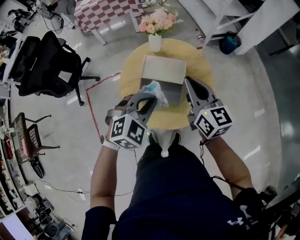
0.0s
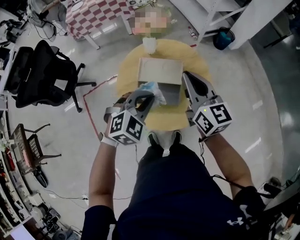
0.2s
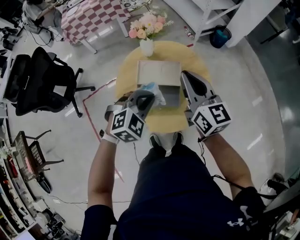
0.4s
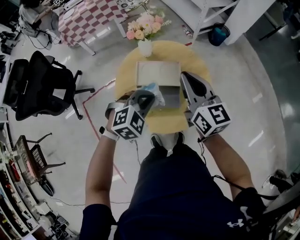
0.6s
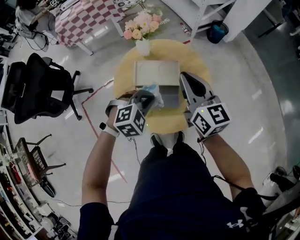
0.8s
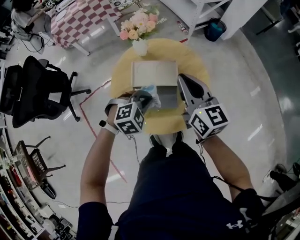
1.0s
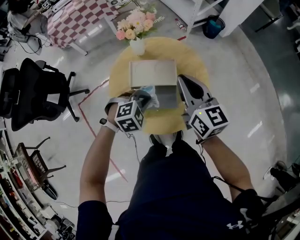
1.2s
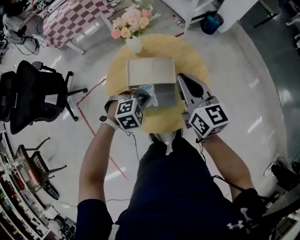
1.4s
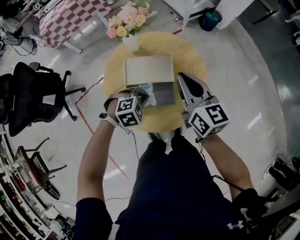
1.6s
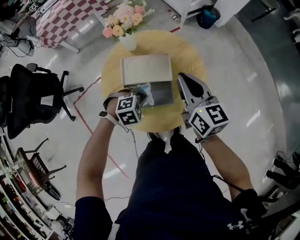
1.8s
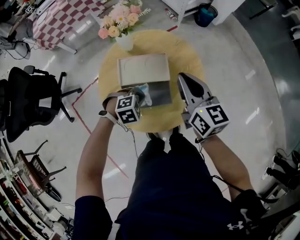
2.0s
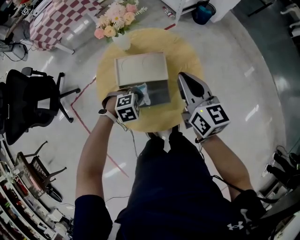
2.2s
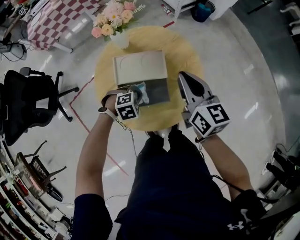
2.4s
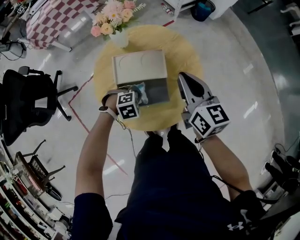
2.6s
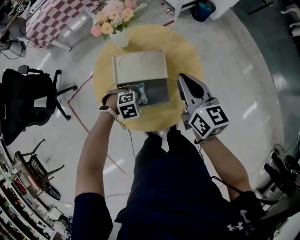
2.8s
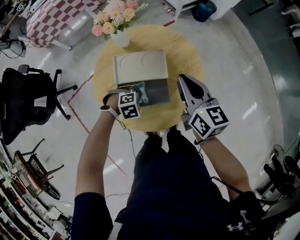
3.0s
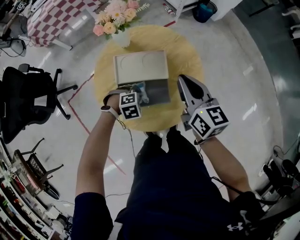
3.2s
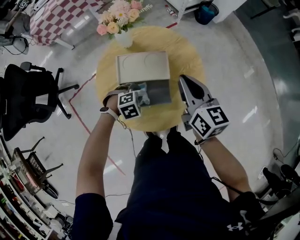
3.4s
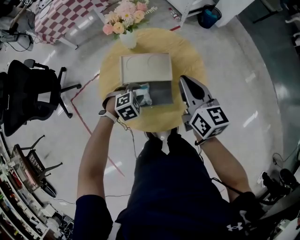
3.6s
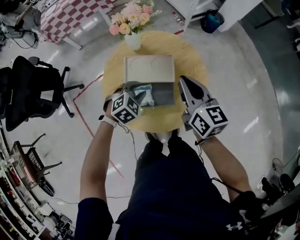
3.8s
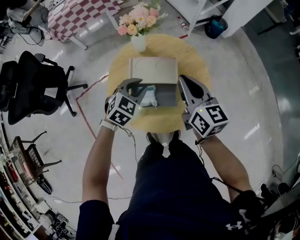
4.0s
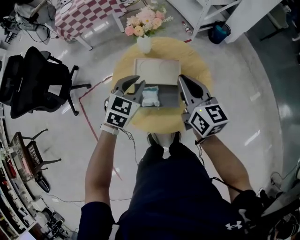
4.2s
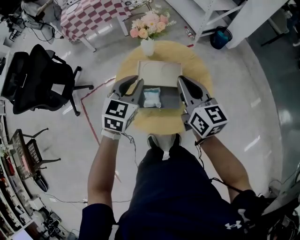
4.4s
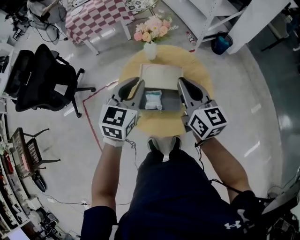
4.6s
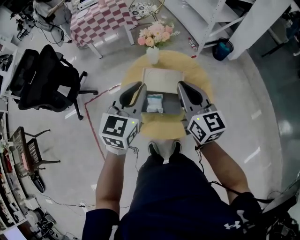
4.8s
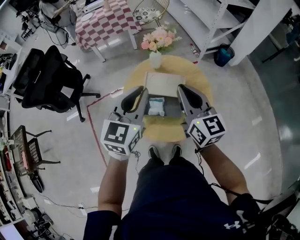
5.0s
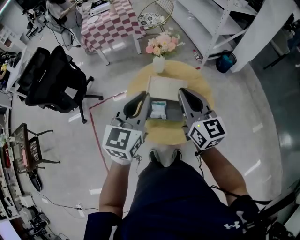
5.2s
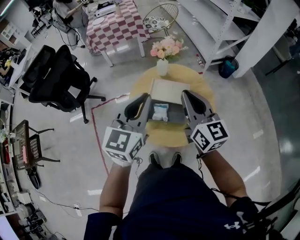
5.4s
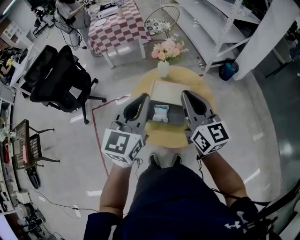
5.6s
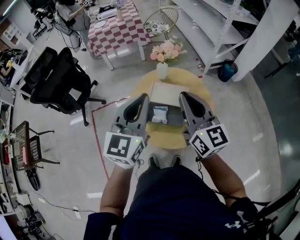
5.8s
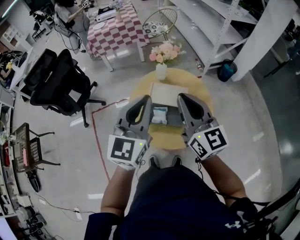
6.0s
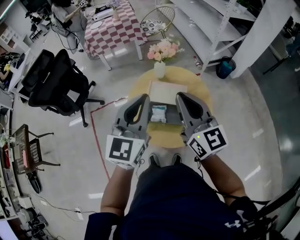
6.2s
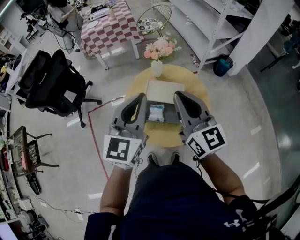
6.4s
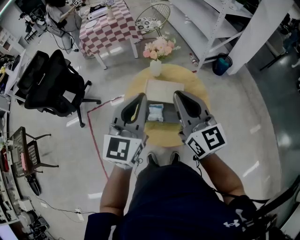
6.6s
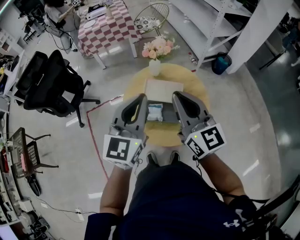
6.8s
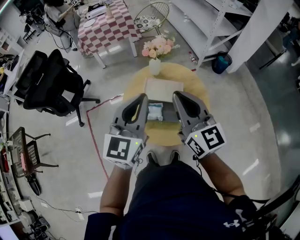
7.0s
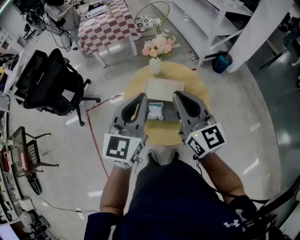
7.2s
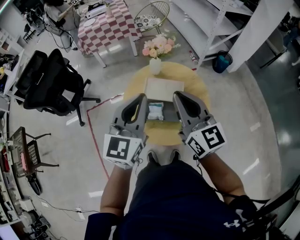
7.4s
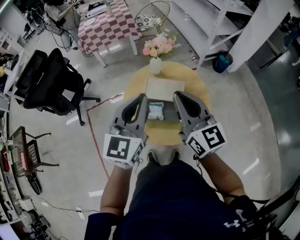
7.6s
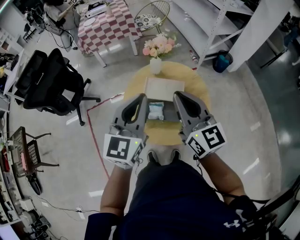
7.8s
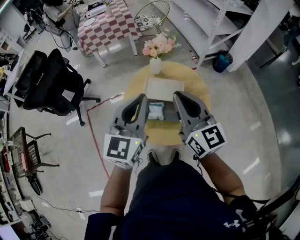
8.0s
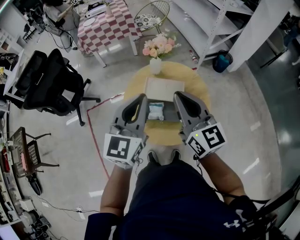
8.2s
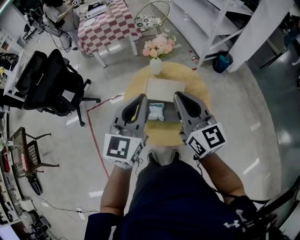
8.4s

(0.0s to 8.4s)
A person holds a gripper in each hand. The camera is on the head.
0.0s - 1.4s: The right gripper shifts by about 5 cm; the left gripper is displaced downward and forward by approximately 15 cm, and swivels about 30 degrees.
1.4s - 2.8s: The right gripper moves about 5 cm; the left gripper moves downward, roughly 10 cm.
2.8s - 4.2s: The left gripper heads upward, covering roughly 25 cm, and tips its fingers upward by about 40 degrees. The right gripper ends up roughly 10 cm from where it was.
4.2s - 5.6s: The right gripper heads upward and backward, covering roughly 15 cm. Meanwhile the left gripper goes roughly 25 cm upward and backward, and angles its fingers upward, by some 30 degrees.
5.6s - 7.0s: The grippers move only a little.
7.0s - 8.4s: The two grippers keep their place.

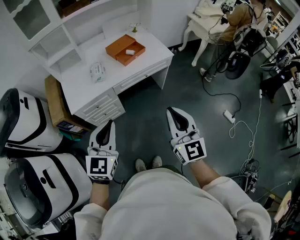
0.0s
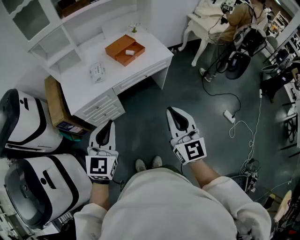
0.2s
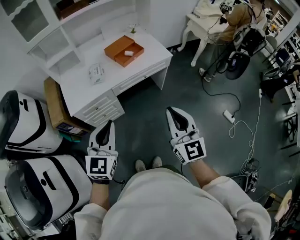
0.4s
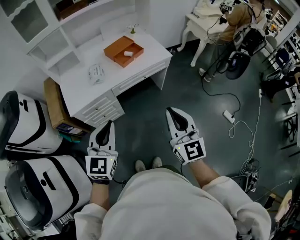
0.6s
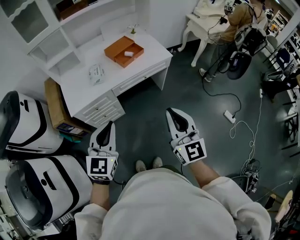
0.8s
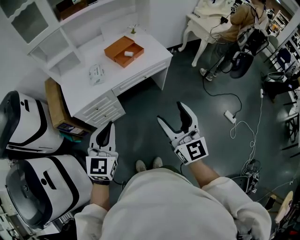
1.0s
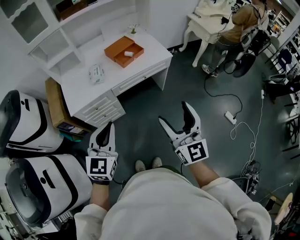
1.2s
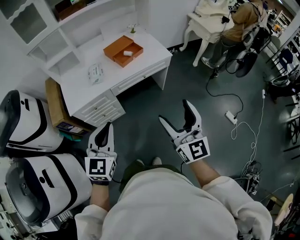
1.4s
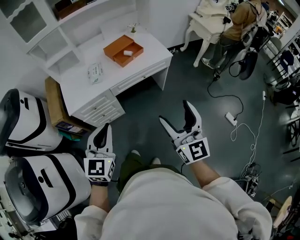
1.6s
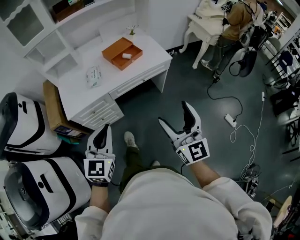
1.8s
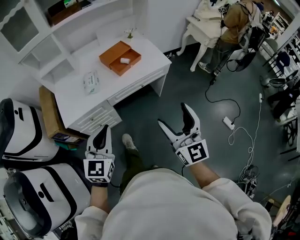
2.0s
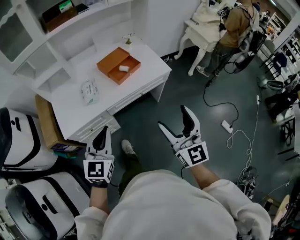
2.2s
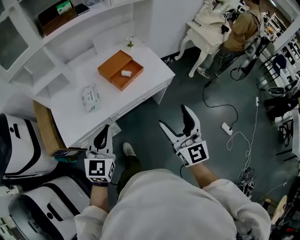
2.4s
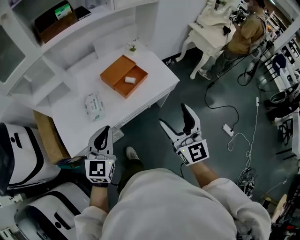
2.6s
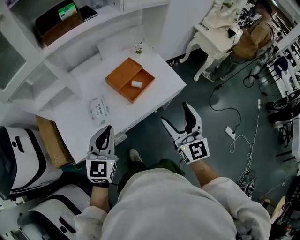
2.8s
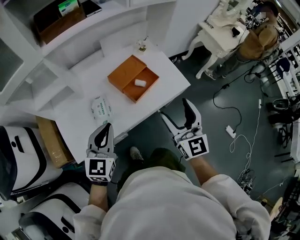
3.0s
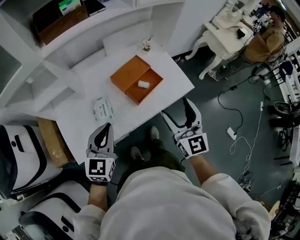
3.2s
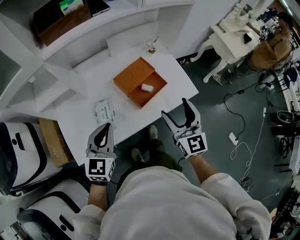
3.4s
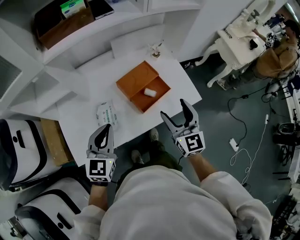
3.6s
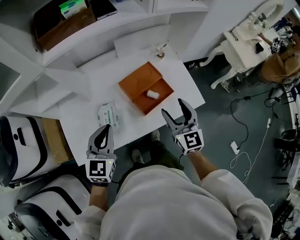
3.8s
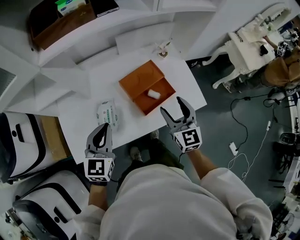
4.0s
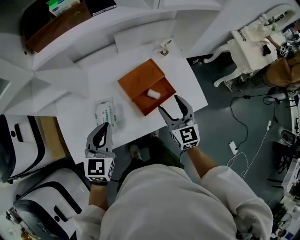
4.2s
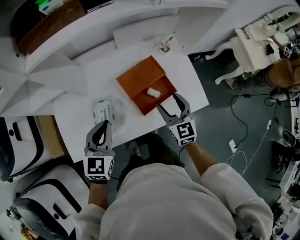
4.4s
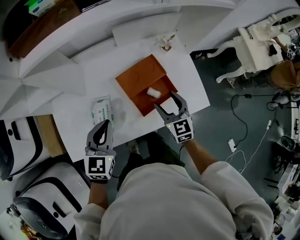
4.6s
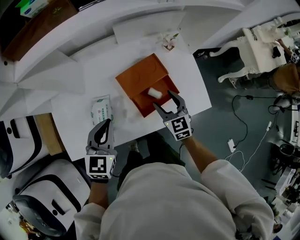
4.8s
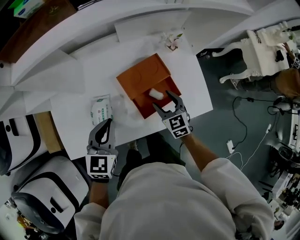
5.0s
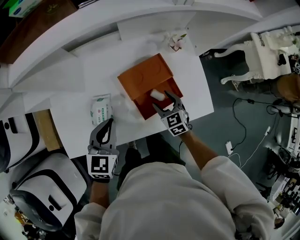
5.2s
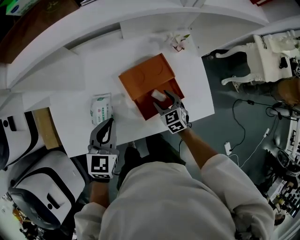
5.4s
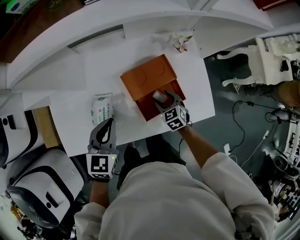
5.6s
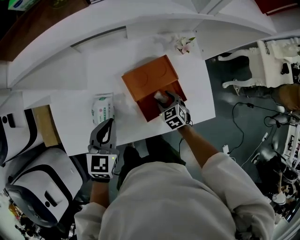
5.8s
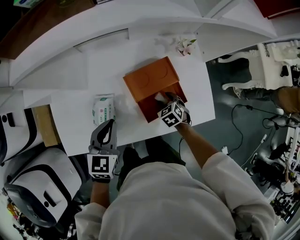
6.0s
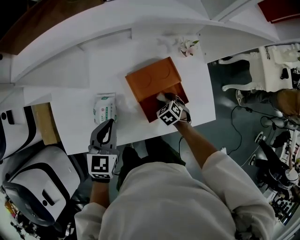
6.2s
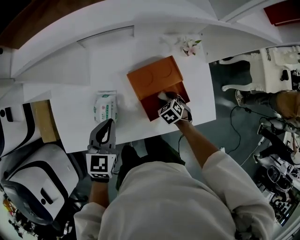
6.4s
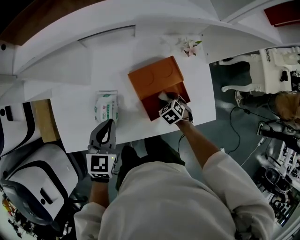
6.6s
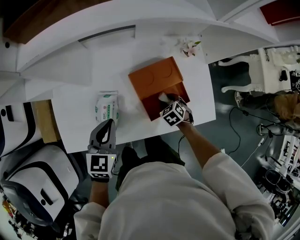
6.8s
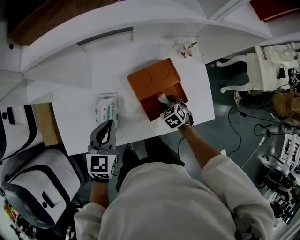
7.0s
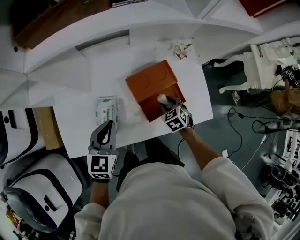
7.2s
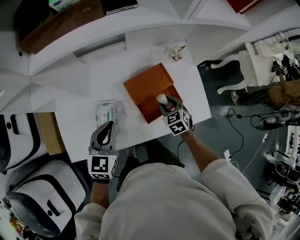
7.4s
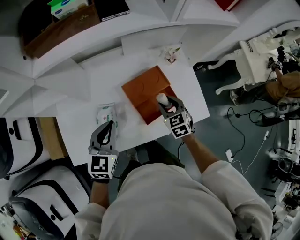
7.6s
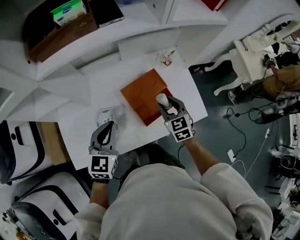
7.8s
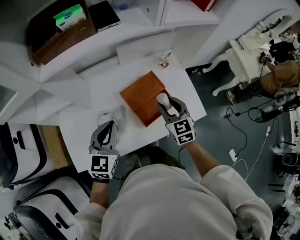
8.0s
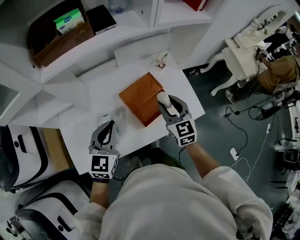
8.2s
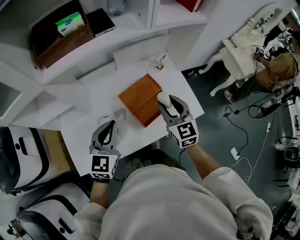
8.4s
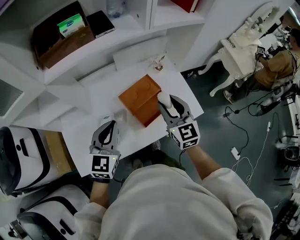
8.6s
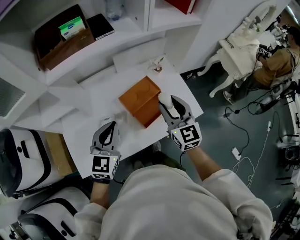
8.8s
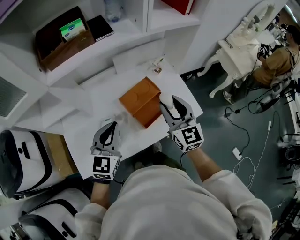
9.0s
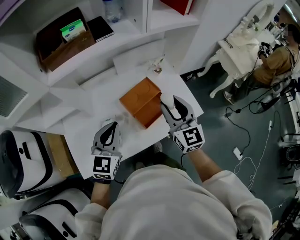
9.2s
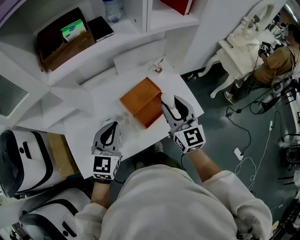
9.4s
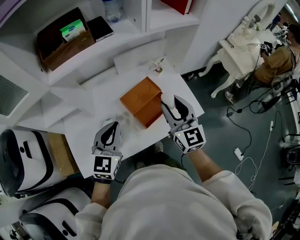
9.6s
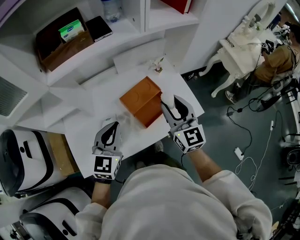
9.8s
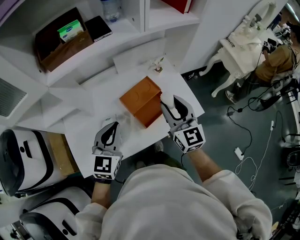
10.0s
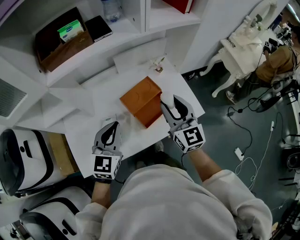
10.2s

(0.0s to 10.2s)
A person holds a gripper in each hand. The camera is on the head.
0.0s - 1.4s: The right gripper opens.
1.4s - 3.0s: Both grippers are carried forward, about 40 cm.
3.0s - 4.4s: The left gripper travels forward by roughly 15 cm. Meanwhile the right gripper heads forward and downward, covering roughly 30 cm, and swivels about 20 degrees.
4.4s - 5.8s: The left gripper shifts some 5 cm downward, while the right gripper travels downward by about 20 cm, and angles its fingers downward, by about 40 degrees.
5.8s - 7.2s: There are only small adjustments of the grippers.
7.2s - 8.8s: The right gripper is displaced upward by roughly 30 cm, and tips its fingers upward by some 50 degrees. Meanwhile the left gripper goes approximately 10 cm upward, and rotates about 20 degrees.
8.8s - 10.2s: There are only small adjustments of the grippers.

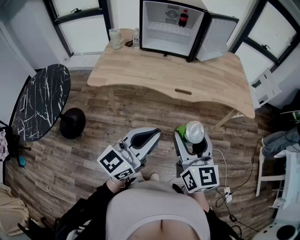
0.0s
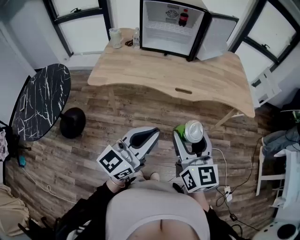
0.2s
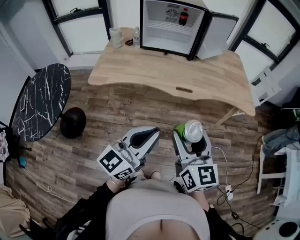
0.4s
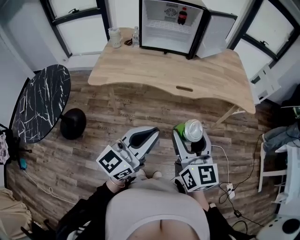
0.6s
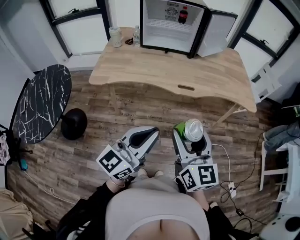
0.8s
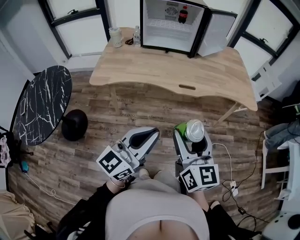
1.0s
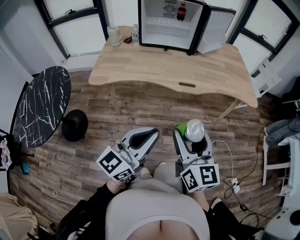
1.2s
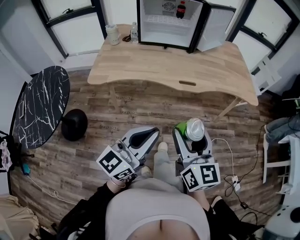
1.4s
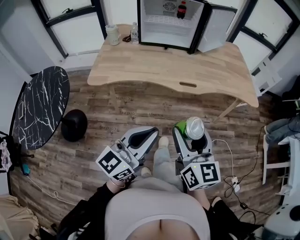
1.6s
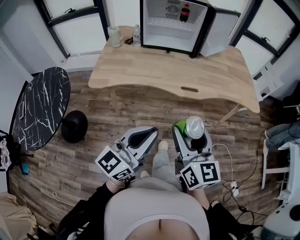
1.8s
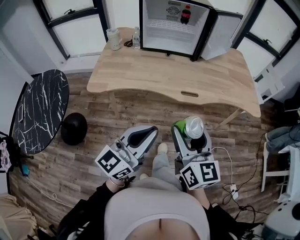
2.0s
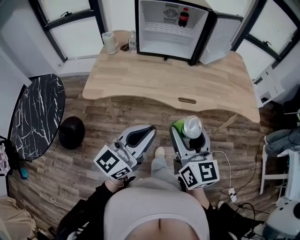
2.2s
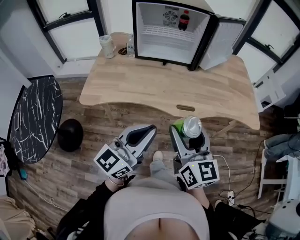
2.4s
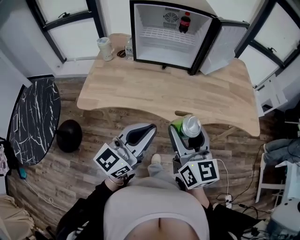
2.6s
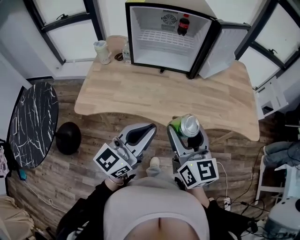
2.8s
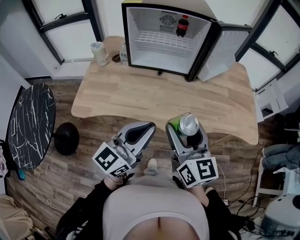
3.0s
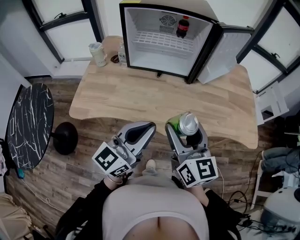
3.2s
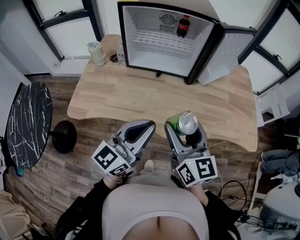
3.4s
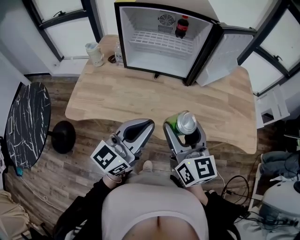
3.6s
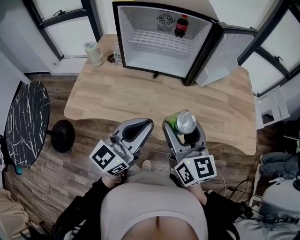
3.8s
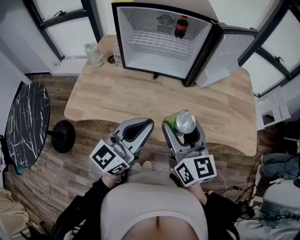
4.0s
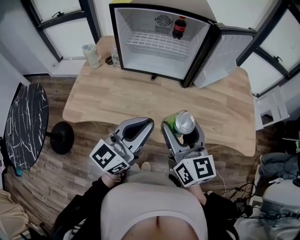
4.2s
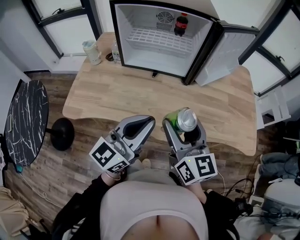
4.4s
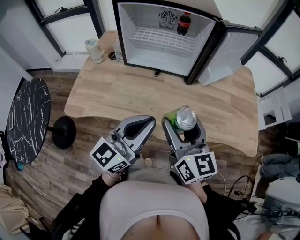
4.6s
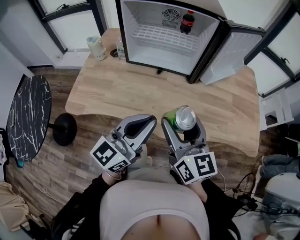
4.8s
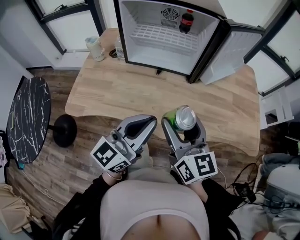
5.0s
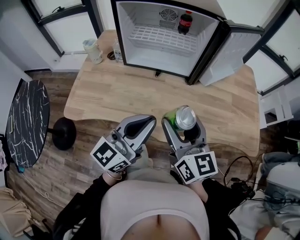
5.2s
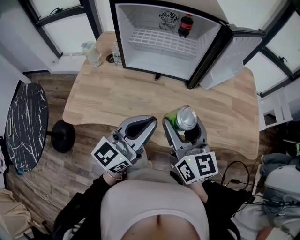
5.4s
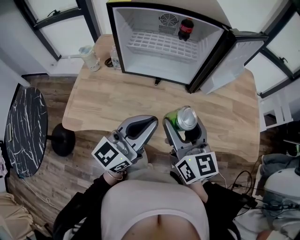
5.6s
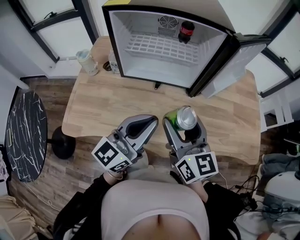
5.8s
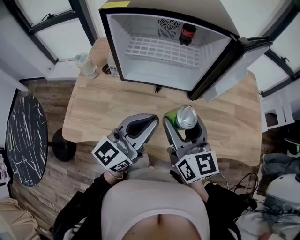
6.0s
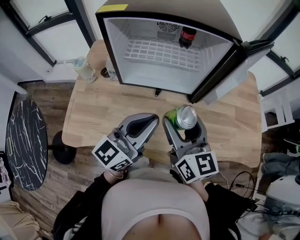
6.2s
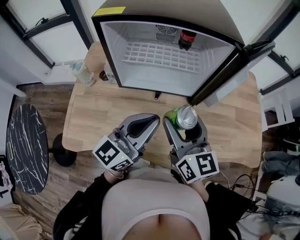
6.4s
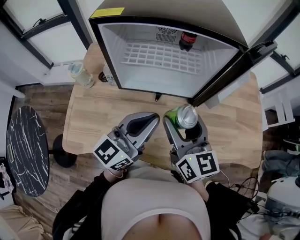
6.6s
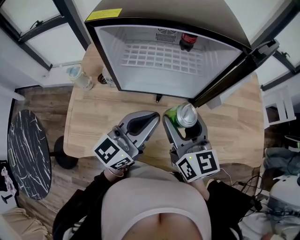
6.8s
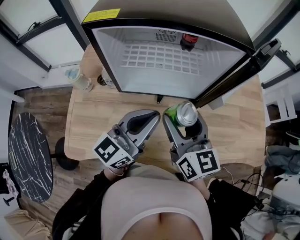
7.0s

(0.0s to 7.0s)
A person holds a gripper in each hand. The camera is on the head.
0.0s - 1.4s: The left gripper ends up about 5 cm from where it was.
1.4s - 2.8s: Both grippers travel together forward, roughly 25 cm.
2.8s - 4.2s: Both grippers move forward, some 10 cm.
4.2s - 5.6s: The grippers both shift forward by about 5 cm.
5.6s - 7.0s: The left gripper goes approximately 15 cm forward, while the right gripper shifts about 15 cm forward and to the left.
